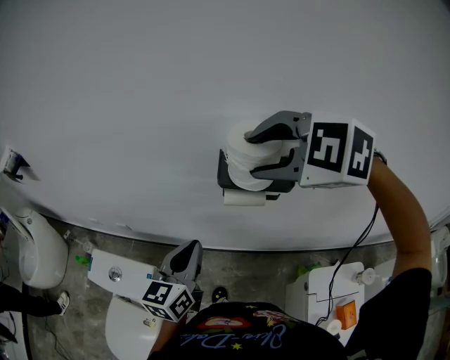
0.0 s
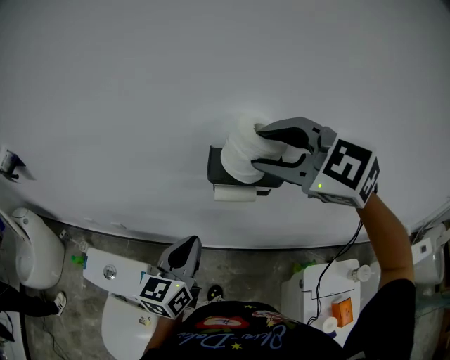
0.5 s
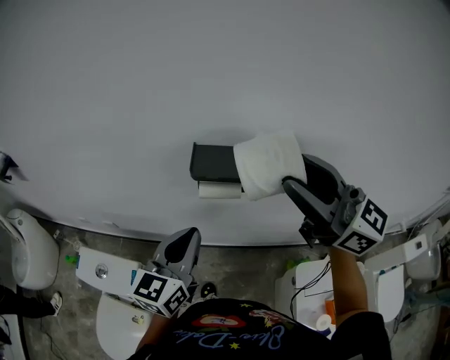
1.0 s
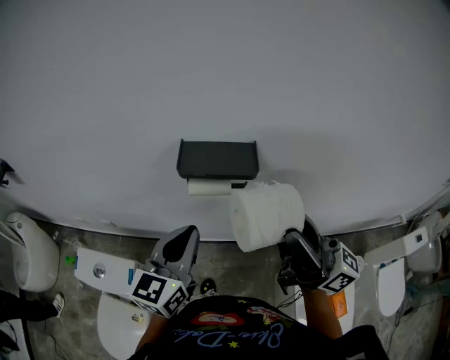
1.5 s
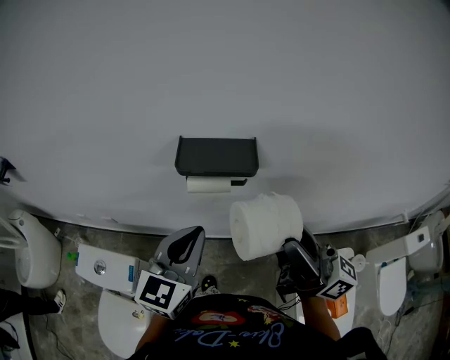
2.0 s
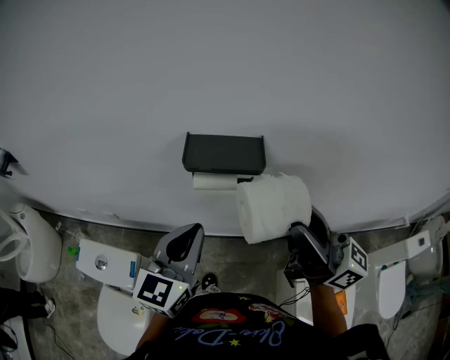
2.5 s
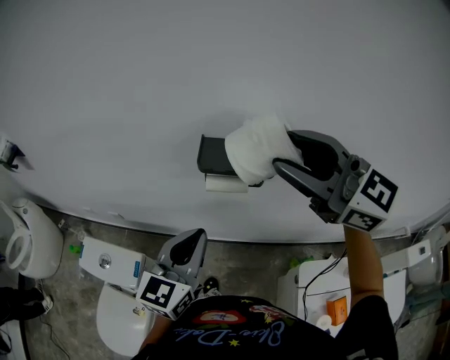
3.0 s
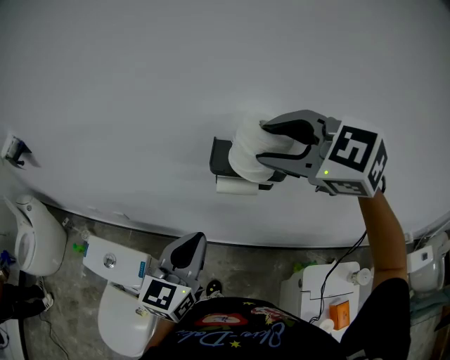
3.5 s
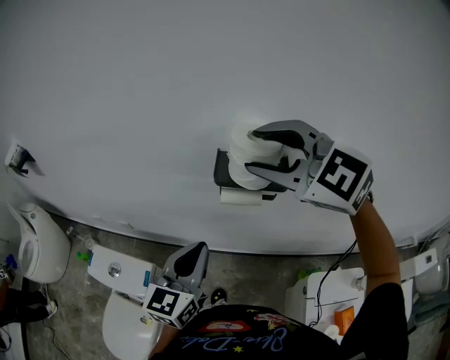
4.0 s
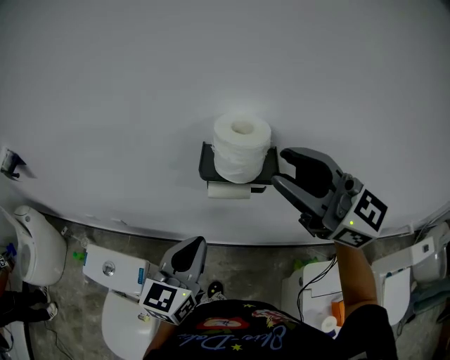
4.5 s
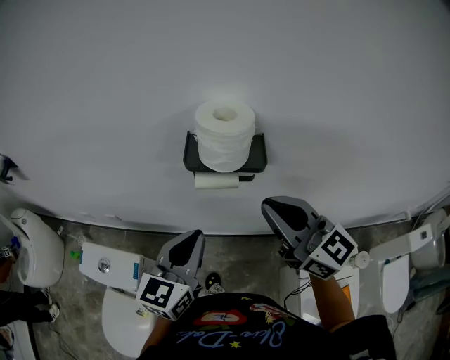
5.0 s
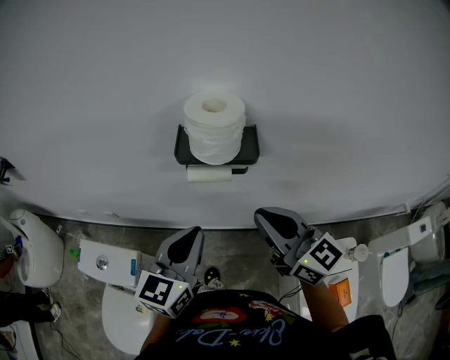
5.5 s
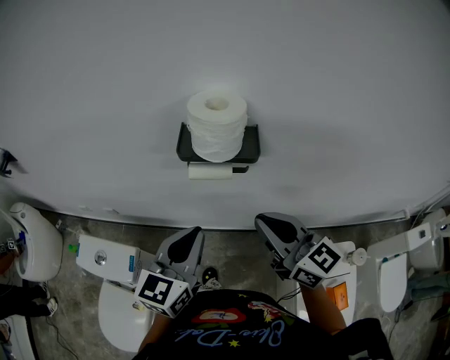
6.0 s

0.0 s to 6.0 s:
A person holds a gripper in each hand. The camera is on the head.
0.0 to 2.0 s: The right gripper goes approximately 20 cm backward and to the right, and tilts its fingers roughly 80 degrees upward, while the left gripper is displaced to the right by some 10 cm, and turns by approximately 20 degrees.
2.0 to 4.0 s: The left gripper is displaced to the left by approximately 5 cm; the right gripper goes some 20 cm forward, to the left and upward, and tips its fingers downward by about 50 degrees.
4.0 to 6.0 s: The left gripper shifts approximately 5 cm to the right. The right gripper travels downward, backward and to the right by about 20 cm, rolls clockwise, seen from behind, by some 50 degrees, and closes.

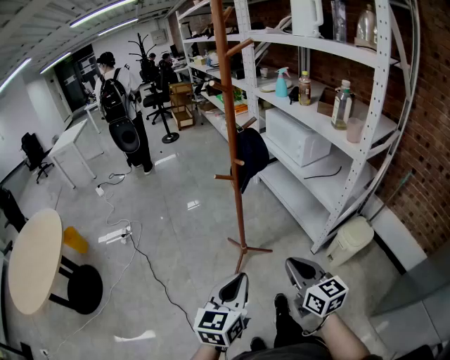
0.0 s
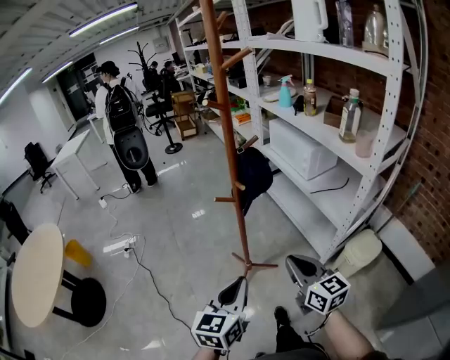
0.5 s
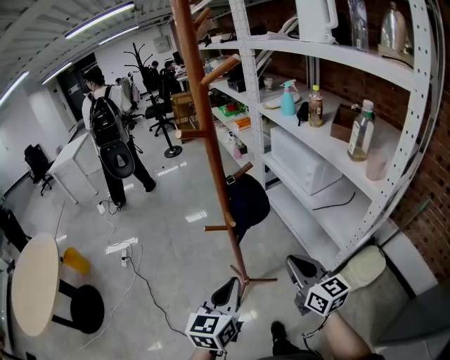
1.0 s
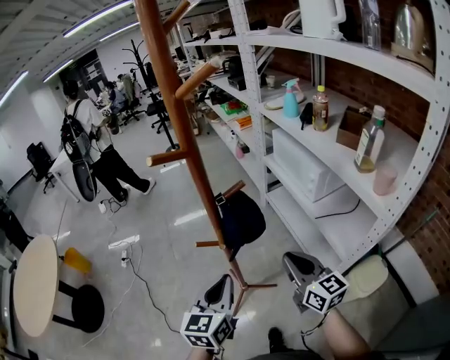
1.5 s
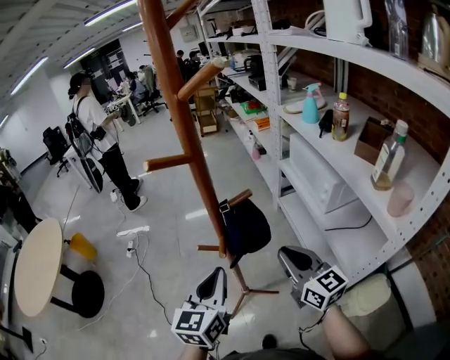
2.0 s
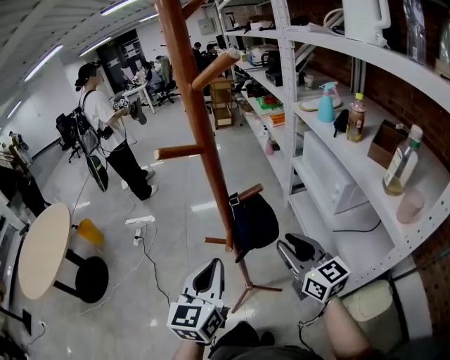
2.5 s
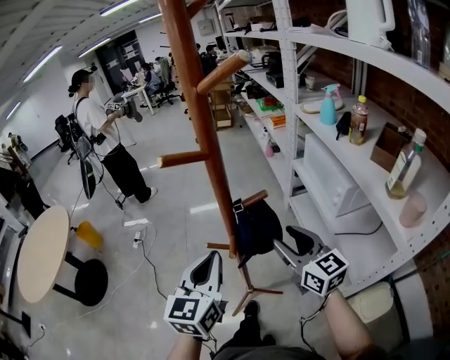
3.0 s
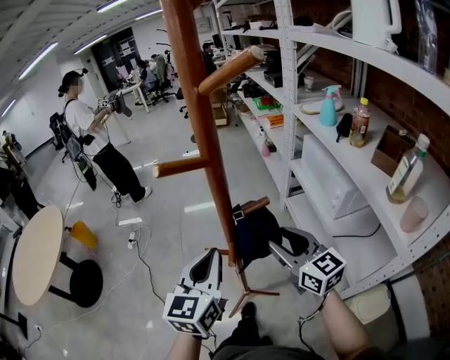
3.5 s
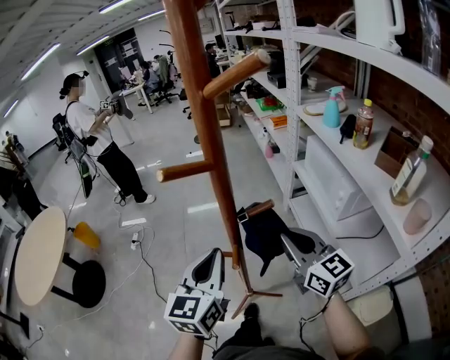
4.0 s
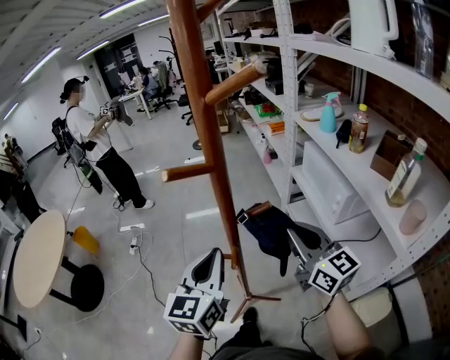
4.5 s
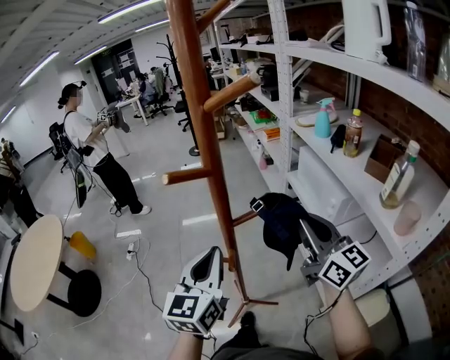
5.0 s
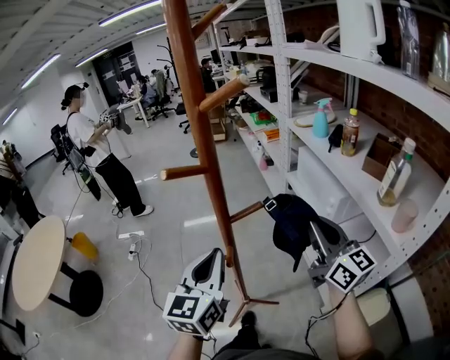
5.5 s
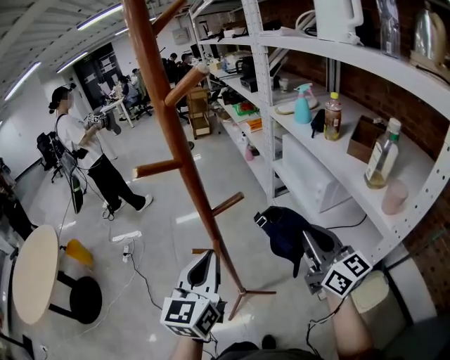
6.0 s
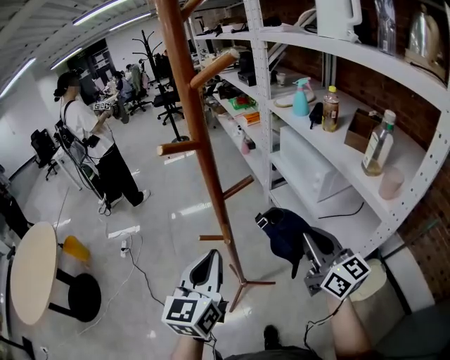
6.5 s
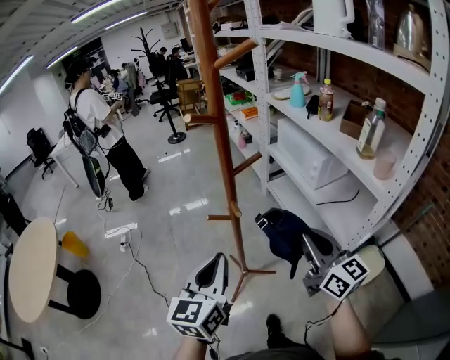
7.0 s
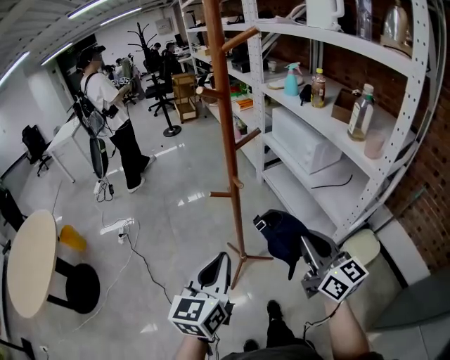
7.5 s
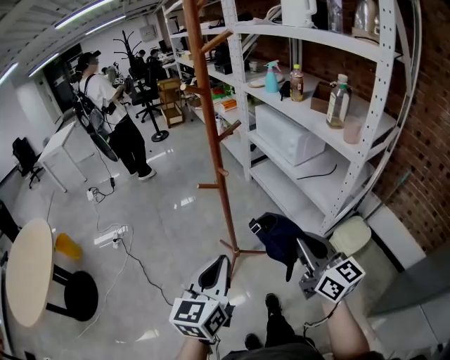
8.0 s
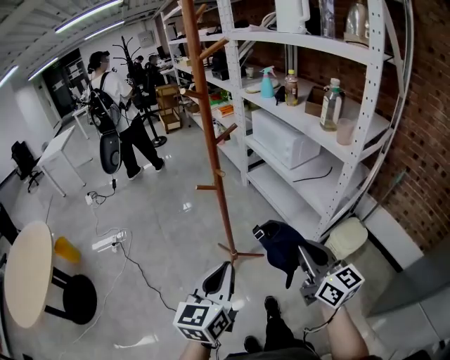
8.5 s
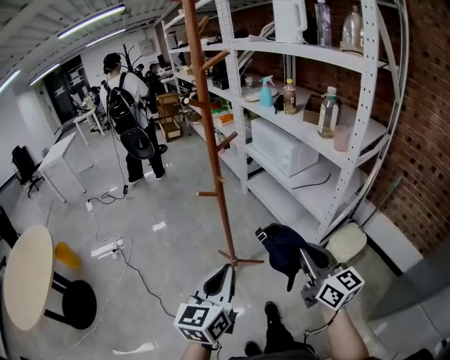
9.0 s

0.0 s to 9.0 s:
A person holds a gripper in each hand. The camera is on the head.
0.0 to 2.0 s: The grippers both shift forward by approximately 30 cm.
2.0 to 4.5 s: The left gripper heads forward and upward, covering roughly 10 cm; the right gripper travels upward and forward by approximately 10 cm, and opens and closes again.
4.5 to 7.0 s: The grippers both shift backward by about 15 cm.
7.0 to 9.0 s: Both grippers move backward, about 20 cm.

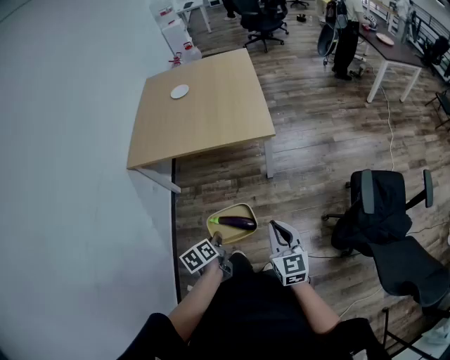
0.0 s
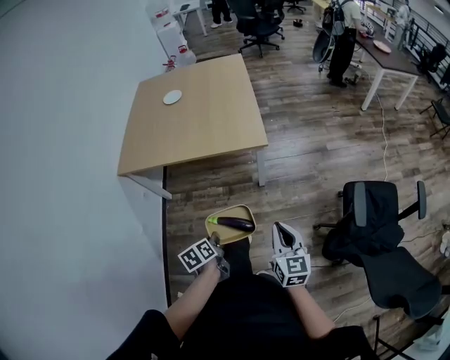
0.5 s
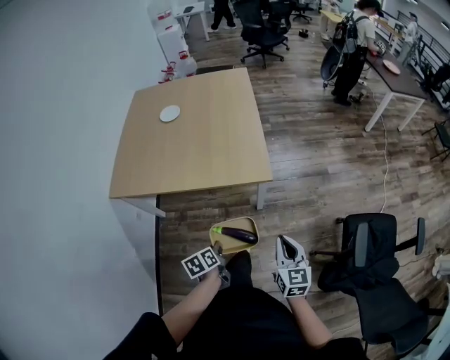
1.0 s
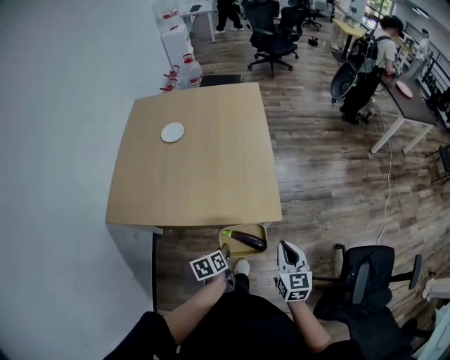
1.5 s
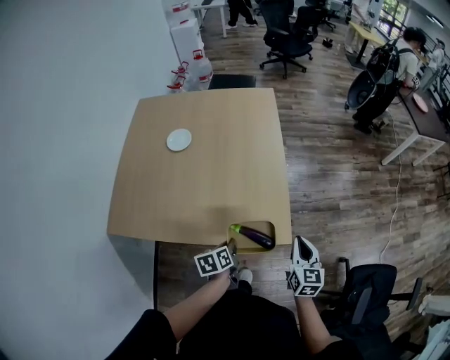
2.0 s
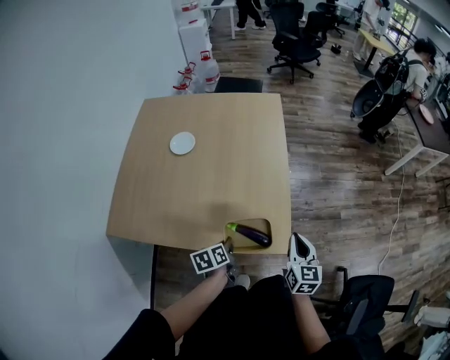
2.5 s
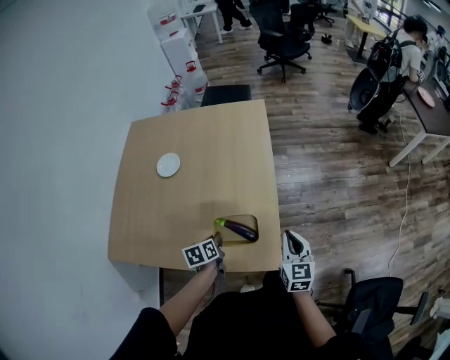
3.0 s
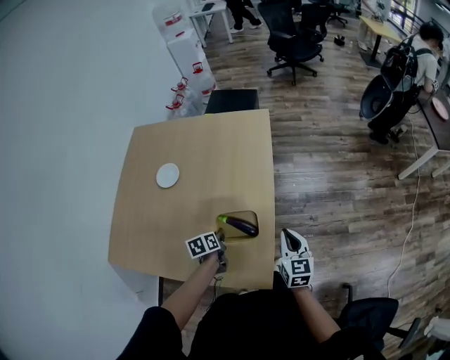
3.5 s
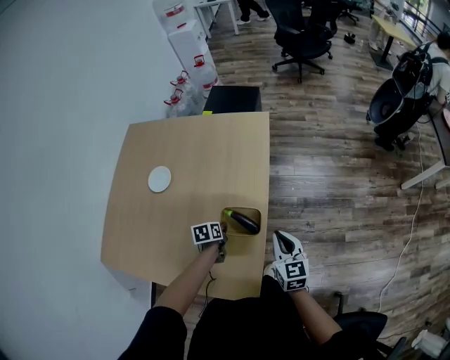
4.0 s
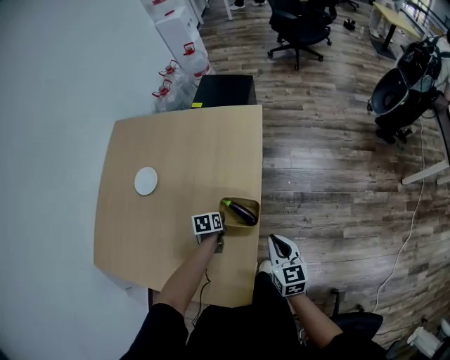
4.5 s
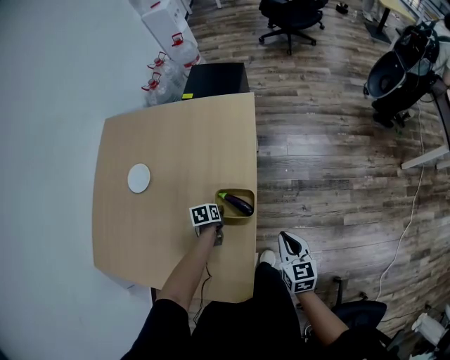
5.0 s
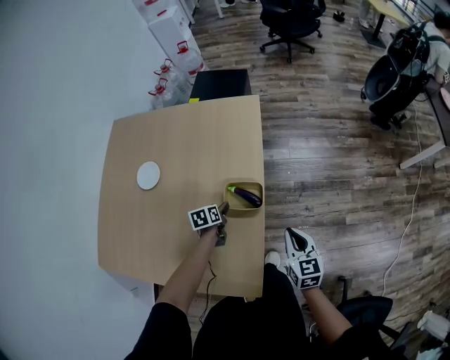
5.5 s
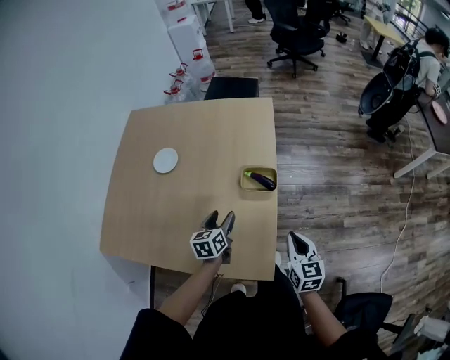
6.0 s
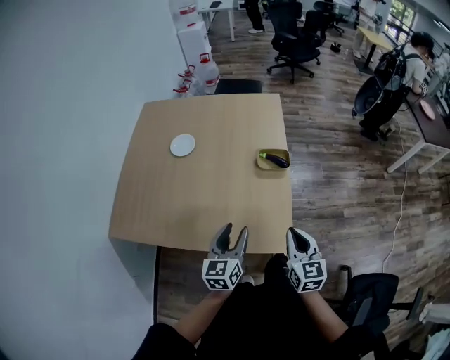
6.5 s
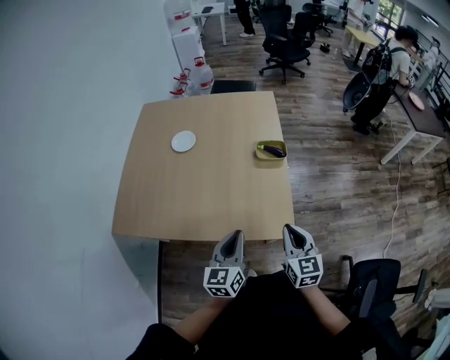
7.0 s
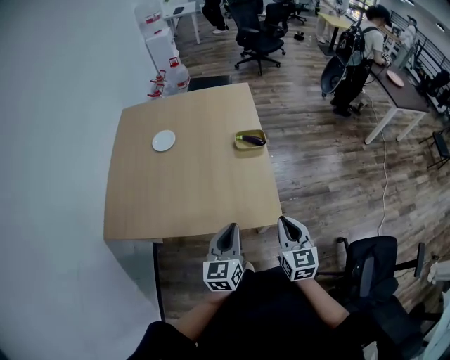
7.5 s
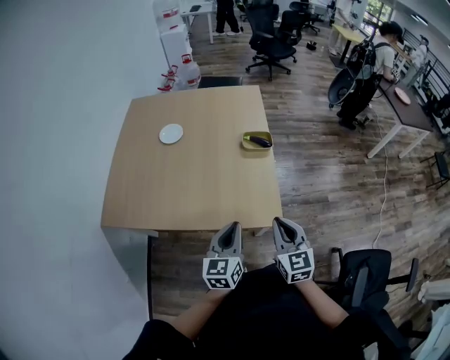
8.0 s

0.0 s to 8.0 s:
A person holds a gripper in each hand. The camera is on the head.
0.0 to 2.0 s: Both grippers are carried forward, about 50 cm.
2.0 to 4.0 s: The two grippers go approximately 35 cm forward. The right gripper rotates roughly 20 degrees.
4.0 to 6.0 s: The right gripper shifts some 10 cm backward. Meanwhile the left gripper heads upward and backward, covering about 15 cm, rotates some 30 degrees, and opens its fingers.
6.0 to 8.0 s: The left gripper moves backward and upward, roughly 35 cm, rotates roughly 20 degrees, and closes up. The right gripper heads backward and to the left, covering some 25 cm.

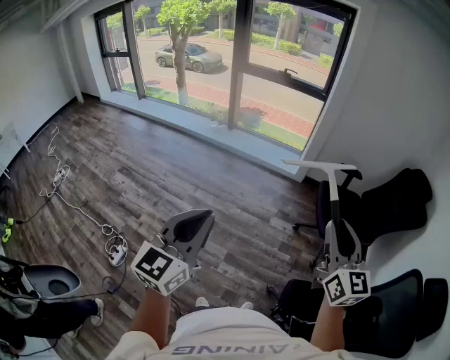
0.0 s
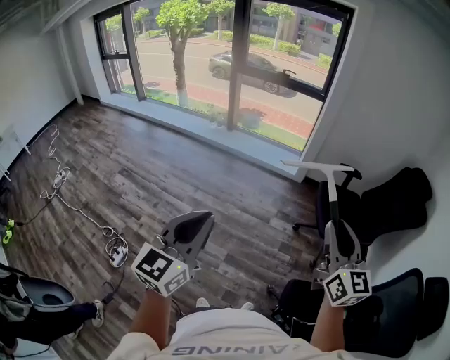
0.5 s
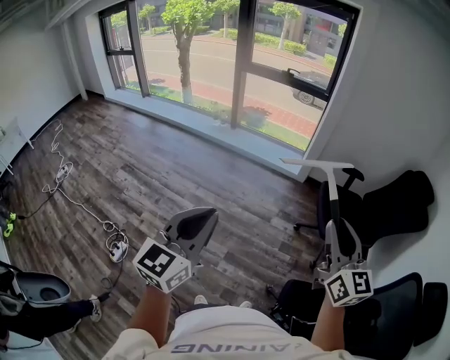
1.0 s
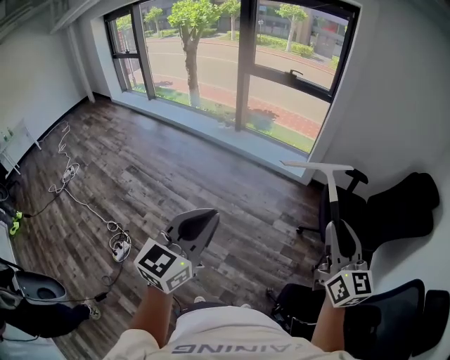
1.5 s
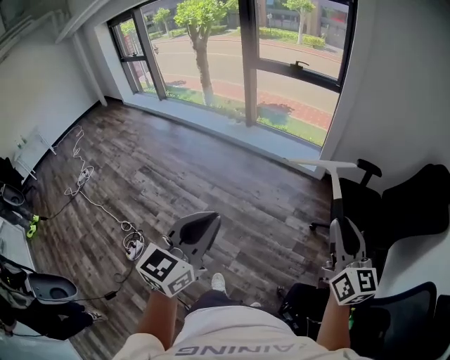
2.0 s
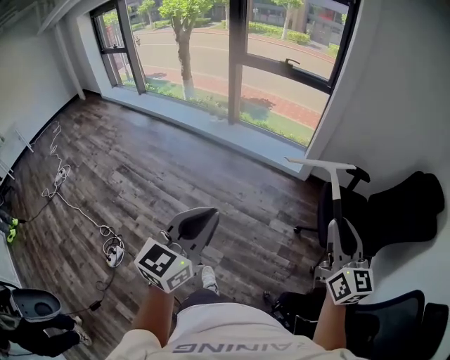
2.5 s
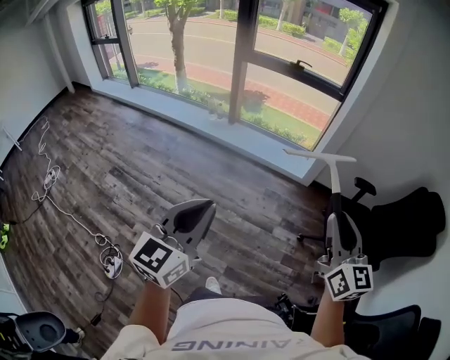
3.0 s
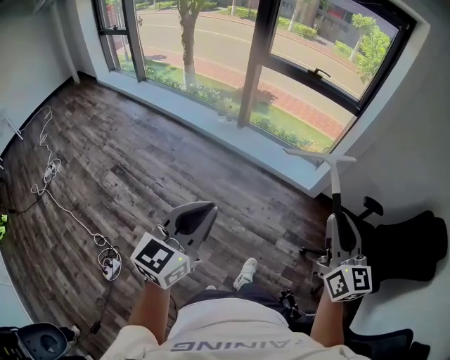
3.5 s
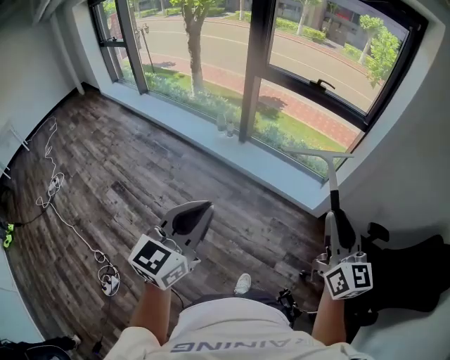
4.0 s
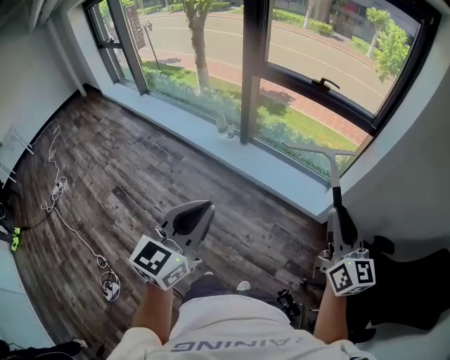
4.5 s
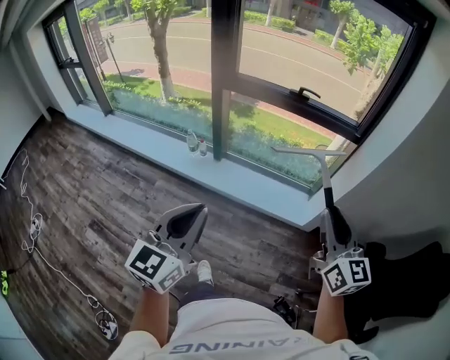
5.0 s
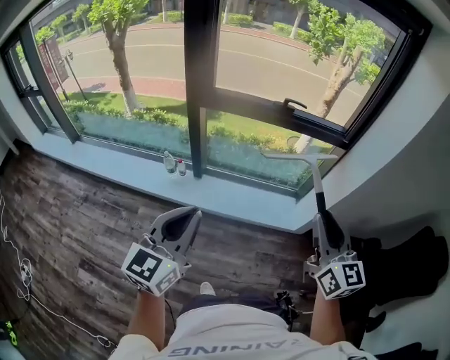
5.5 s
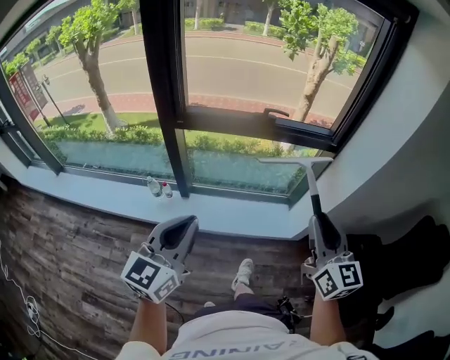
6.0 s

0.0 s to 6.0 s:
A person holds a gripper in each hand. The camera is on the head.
0.0 to 2.0 s: The left gripper is displaced to the right by some 10 cm; the right gripper goes roughly 10 cm to the right and forward.
2.0 to 4.0 s: The pair of grippers is taken forward and to the left, some 60 cm.
4.0 to 6.0 s: Both grippers are carried forward, approximately 50 cm. The left gripper turns by about 20 degrees. The right gripper changes its angle by roughly 20 degrees.
